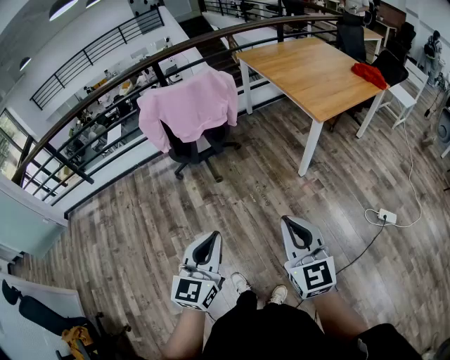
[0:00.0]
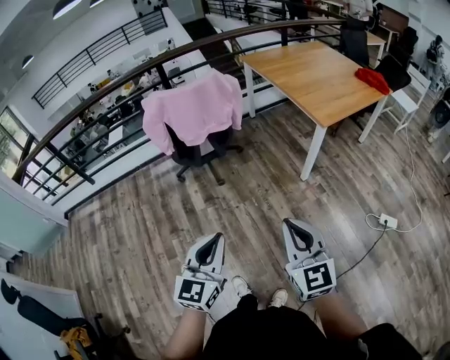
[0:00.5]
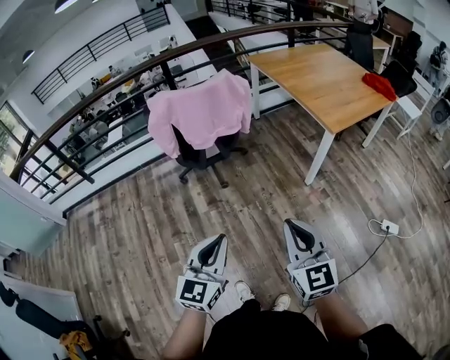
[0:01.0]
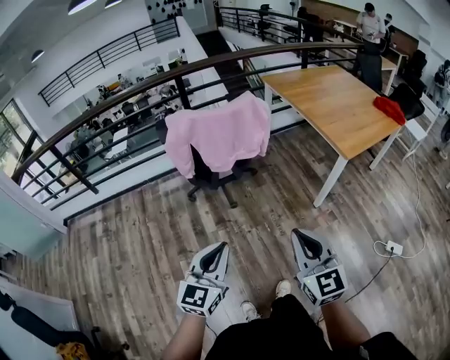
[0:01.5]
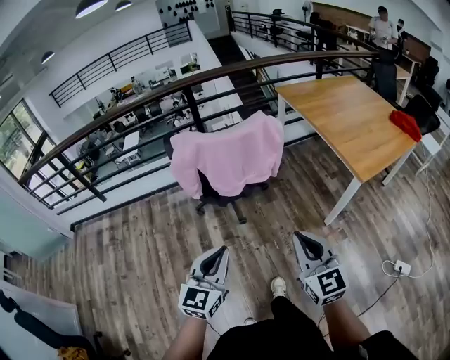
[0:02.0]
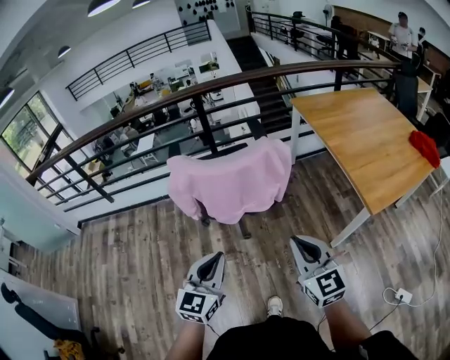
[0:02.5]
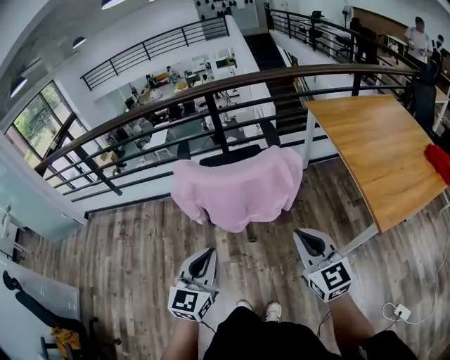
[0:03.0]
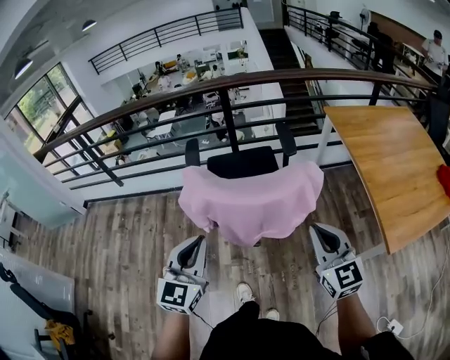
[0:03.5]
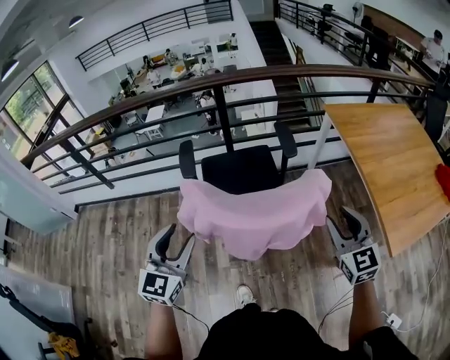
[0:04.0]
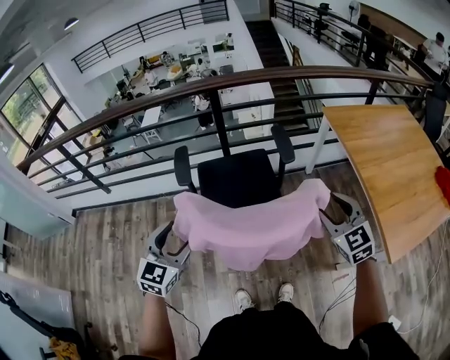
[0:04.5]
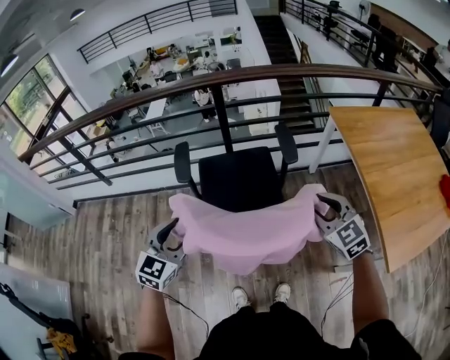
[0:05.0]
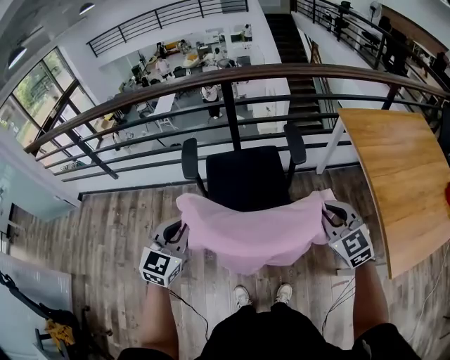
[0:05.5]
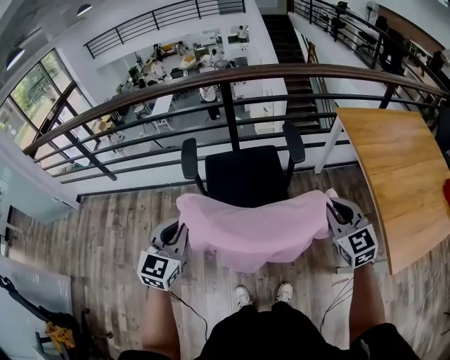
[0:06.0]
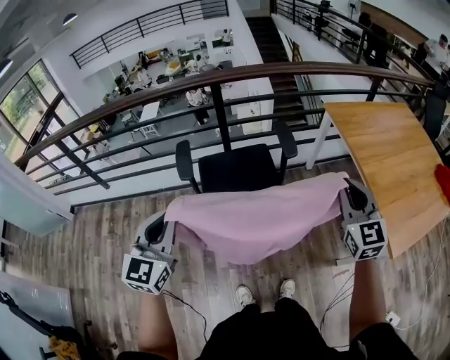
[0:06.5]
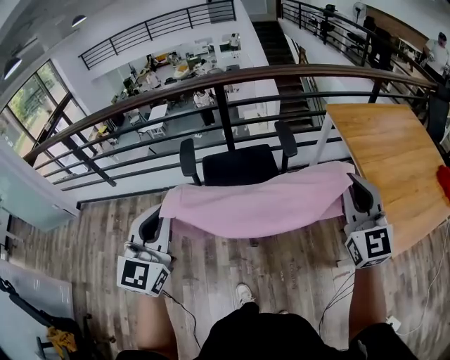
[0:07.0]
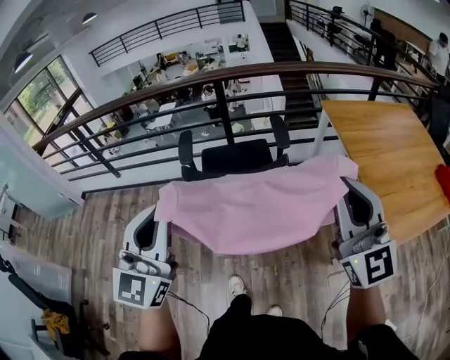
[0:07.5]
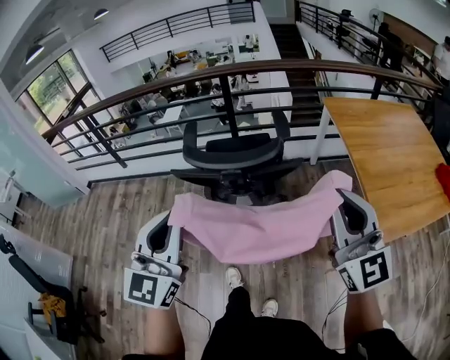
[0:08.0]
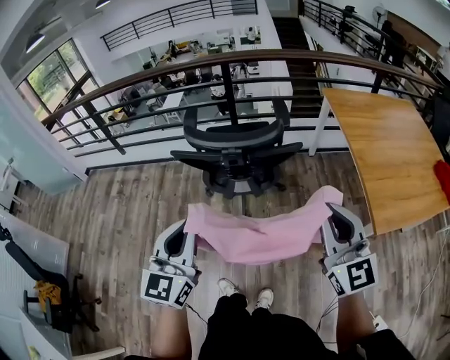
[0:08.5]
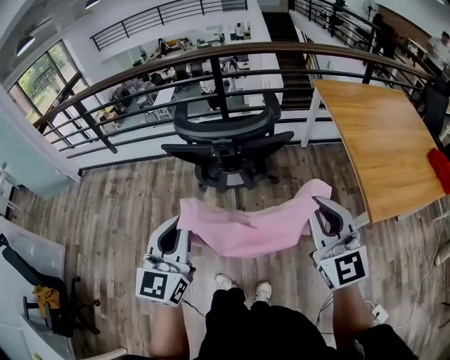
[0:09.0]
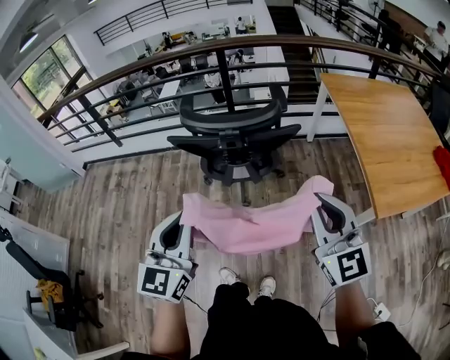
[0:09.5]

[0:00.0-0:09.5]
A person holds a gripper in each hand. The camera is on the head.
0:00.0 to 0:02.0: Both grippers move forward and to the left, about 25 cm.
0:02.0 to 0:04.0: The two grippers go roughly 40 cm forward. The right gripper opens. The left gripper opens up.
0:04.0 to 0:05.5: Both grippers travel together forward, about 10 cm. The left gripper closes; the right gripper changes its angle by approximately 20 degrees, and closes up.
0:05.5 to 0:07.5: The left gripper travels upward, backward and to the right by roughly 30 cm, and swivels about 30 degrees, while the right gripper is displaced upward and backward by roughly 30 cm, and angles its fingers upward, by about 40 degrees.
0:07.5 to 0:09.5: The two grippers go approximately 20 cm backward and downward.

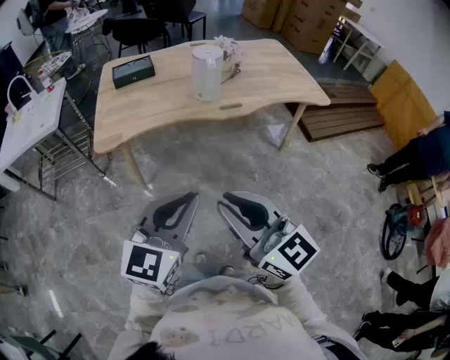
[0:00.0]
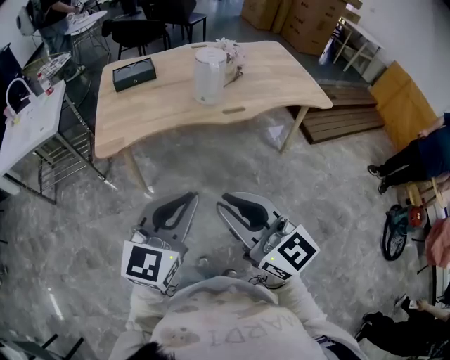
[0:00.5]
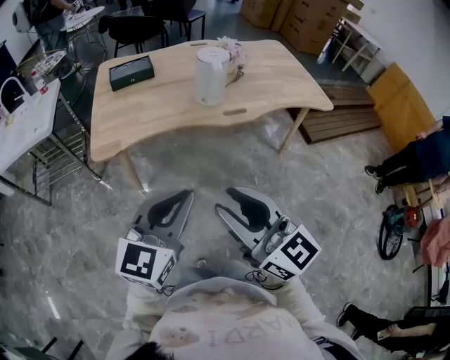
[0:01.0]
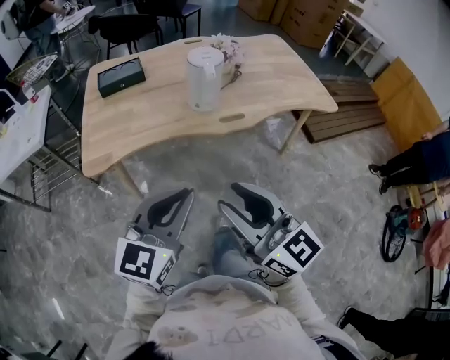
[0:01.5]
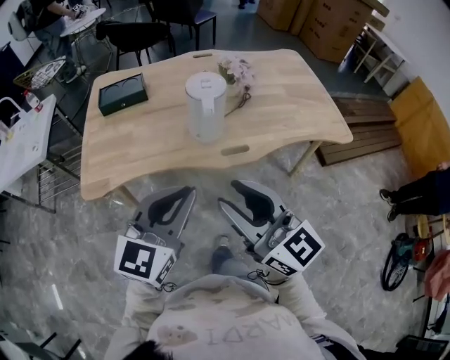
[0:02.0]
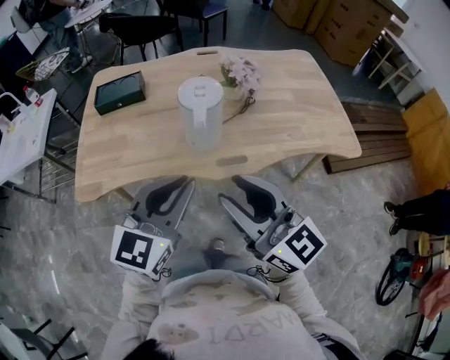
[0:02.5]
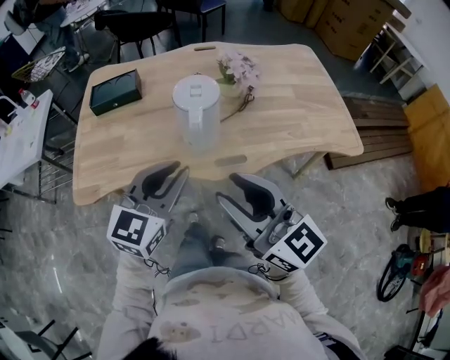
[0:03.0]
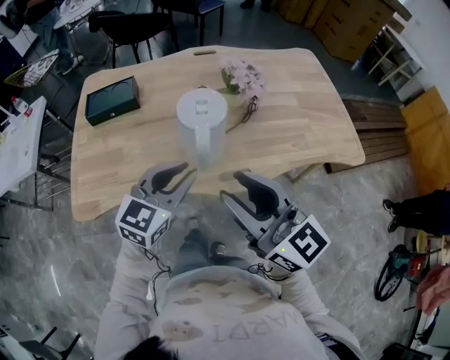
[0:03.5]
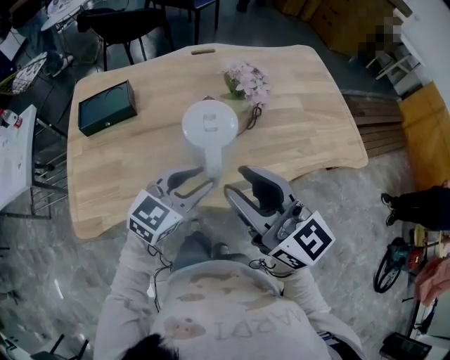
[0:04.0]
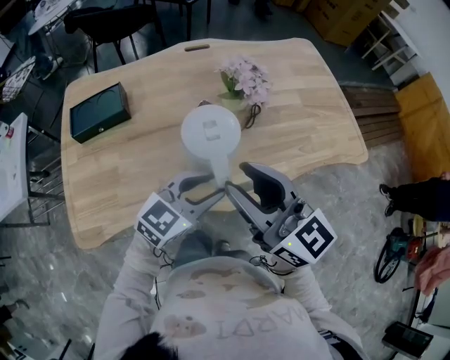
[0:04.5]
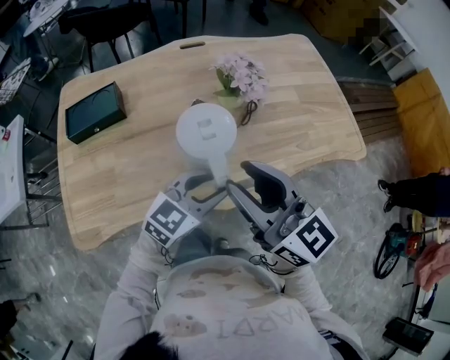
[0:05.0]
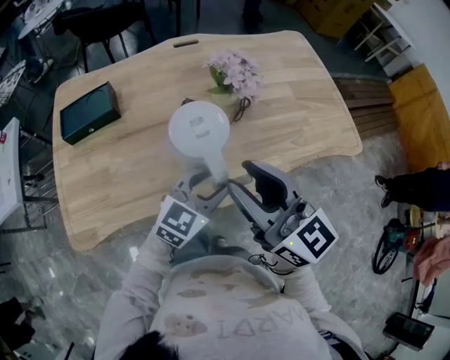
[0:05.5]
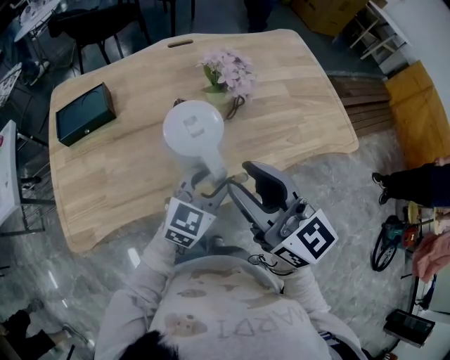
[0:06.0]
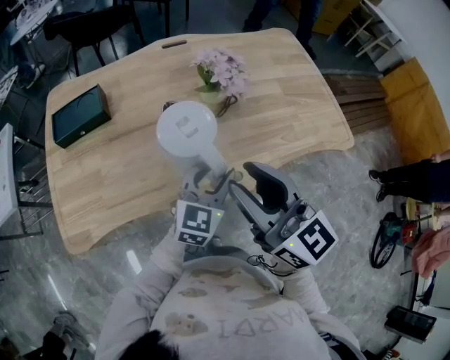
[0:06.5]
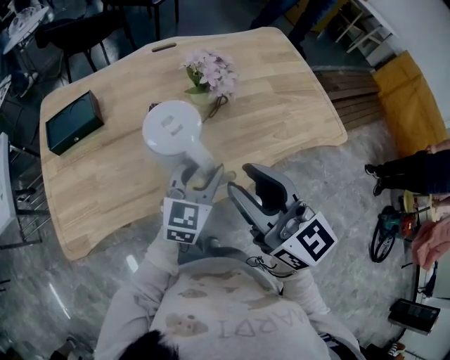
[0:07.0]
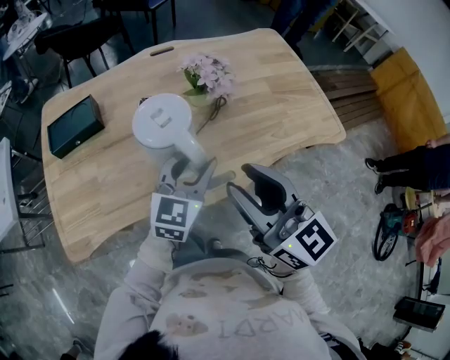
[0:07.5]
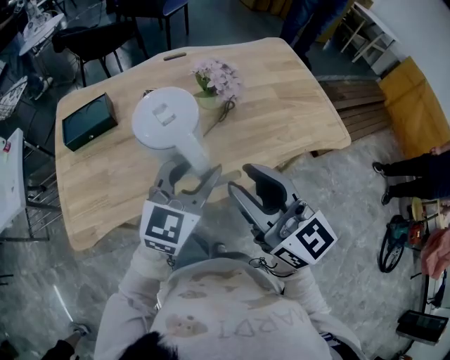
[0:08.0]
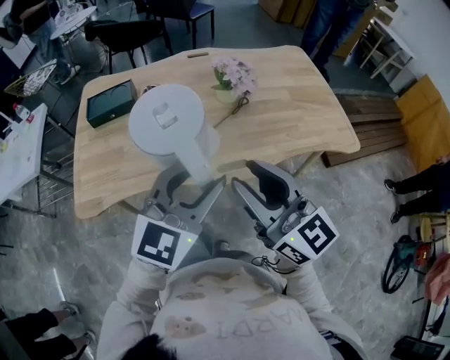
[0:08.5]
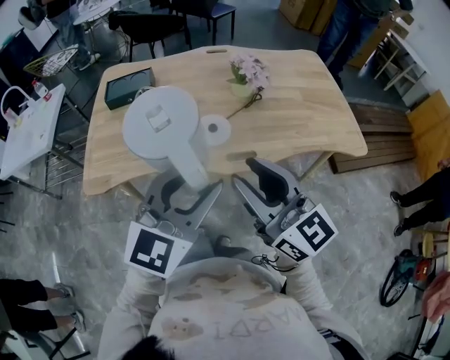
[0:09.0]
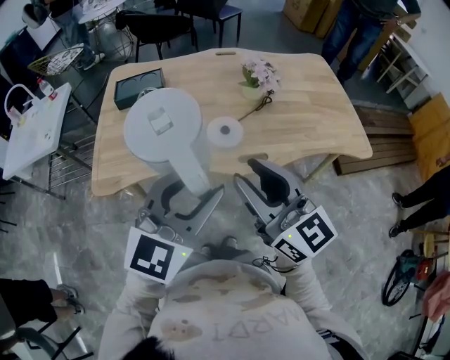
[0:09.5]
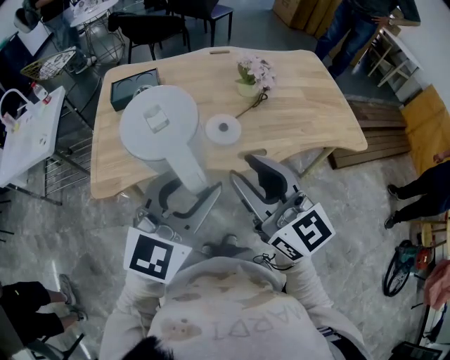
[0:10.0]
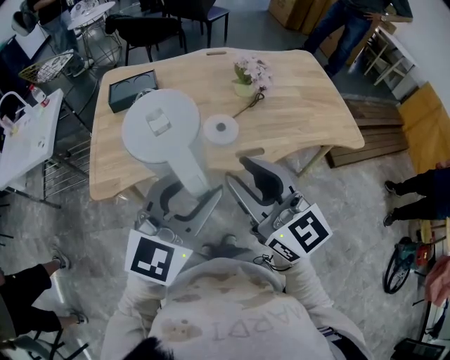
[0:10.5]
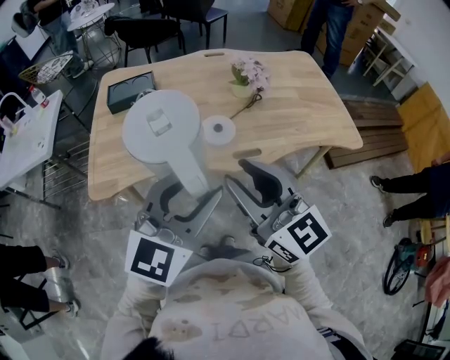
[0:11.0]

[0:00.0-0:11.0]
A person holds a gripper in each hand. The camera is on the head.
0:00.0 to 0:02.0: Both grippers move forward, approximately 30 cm.
0:02.0 to 0:03.5: The left gripper goes about 20 cm forward and downward. Meanwhile the right gripper travels forward by some 15 cm.
0:03.5 to 0:05.5: The left gripper goes some 10 cm to the right, forward and downward; the right gripper goes about 10 cm forward.
0:05.5 to 0:07.5: The right gripper ends up some 5 cm from where it was.
0:07.5 to 0:09.0: The left gripper heads backward and upward, covering some 25 cm. The right gripper goes roughly 15 cm backward.
0:09.0 to 0:11.0: Both grippers move to the left, about 5 cm.

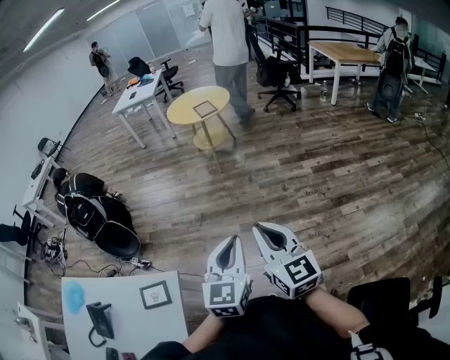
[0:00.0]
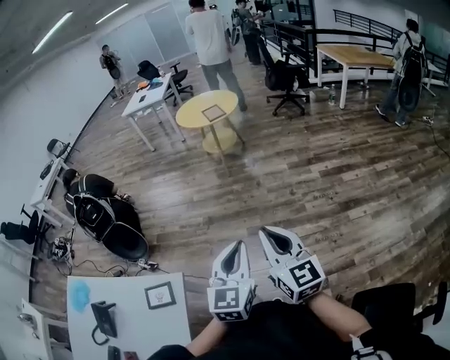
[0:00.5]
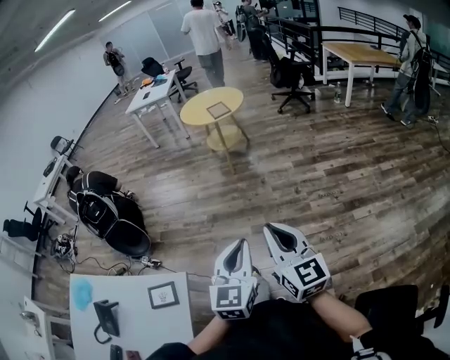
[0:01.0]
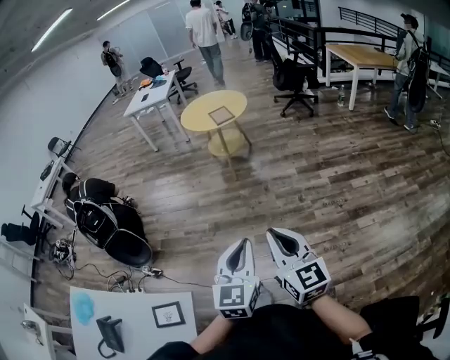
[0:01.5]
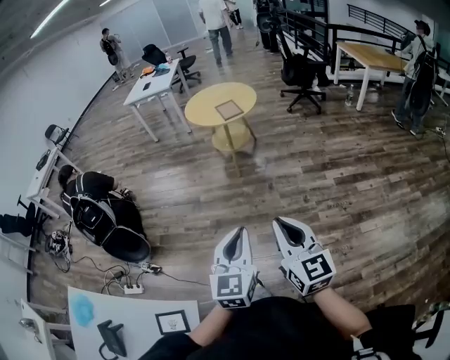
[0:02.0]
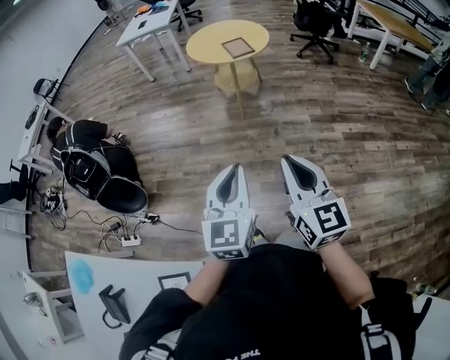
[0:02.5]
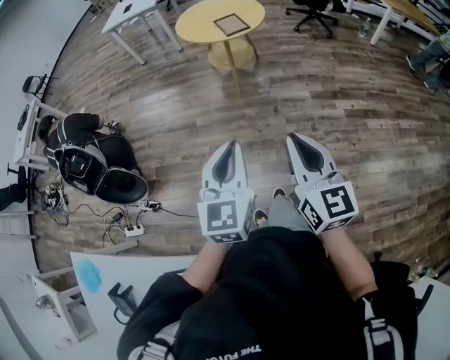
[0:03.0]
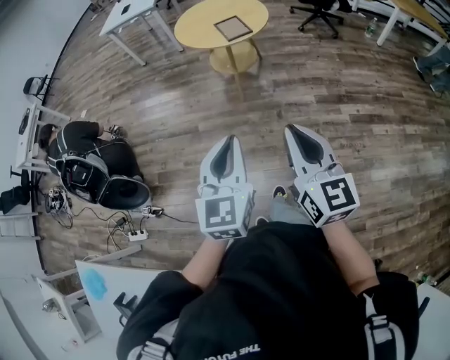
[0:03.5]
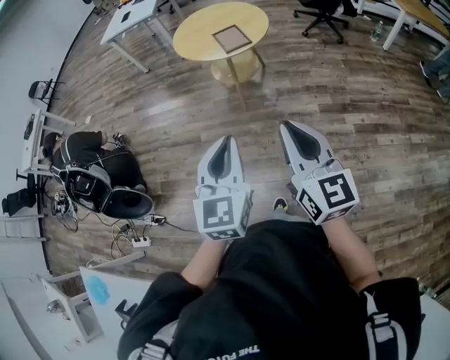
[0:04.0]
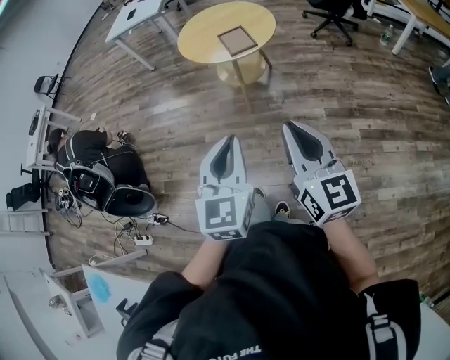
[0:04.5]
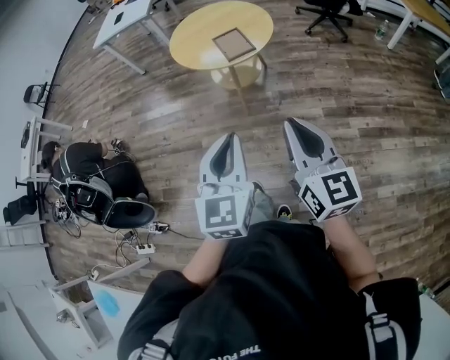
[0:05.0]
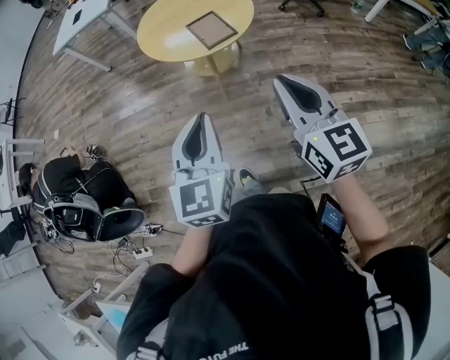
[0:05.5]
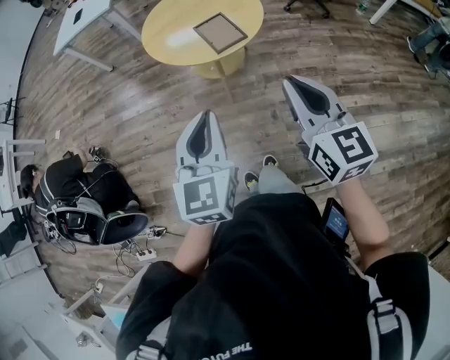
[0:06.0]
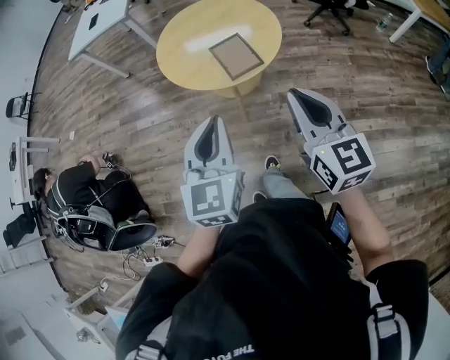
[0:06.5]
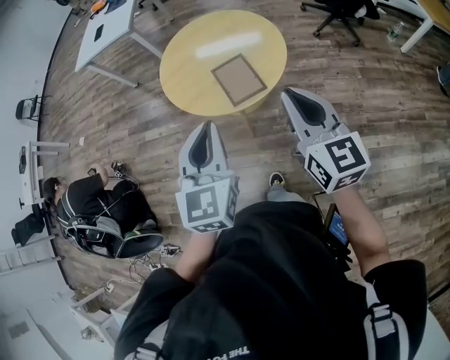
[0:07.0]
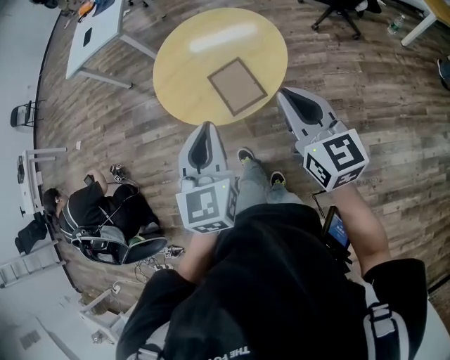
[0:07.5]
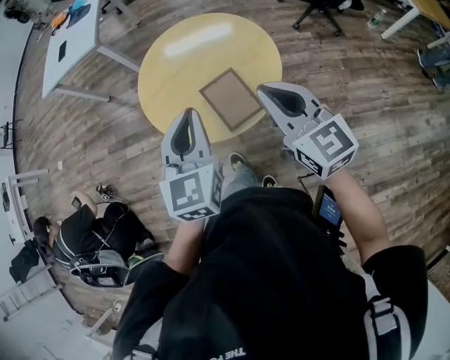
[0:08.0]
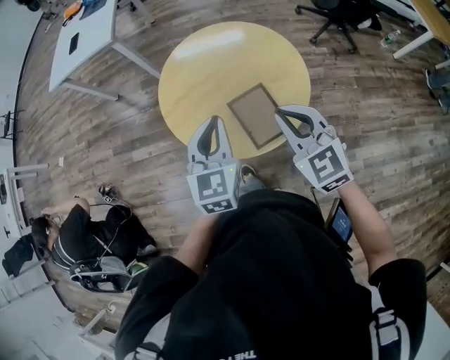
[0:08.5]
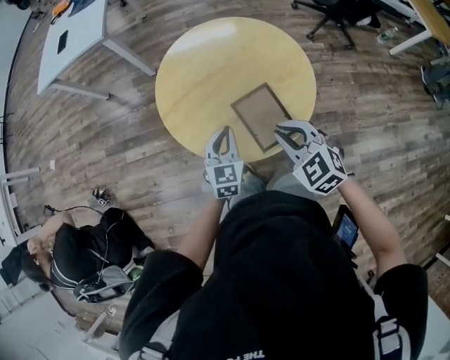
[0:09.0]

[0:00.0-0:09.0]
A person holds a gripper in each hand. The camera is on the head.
0:00.0 to 0:02.0: Both grippers travel together forward, approximately 20 cm.
0:02.0 to 0:04.5: Both grippers travel together forward, approximately 40 cm.
0:04.5 to 0:07.0: The two grippers travel together, forward, roughly 50 cm.
0:07.0 to 0:09.0: The left gripper heads forward and downward, covering some 40 cm, while the right gripper goes about 30 cm forward, downward and to the left, and tilts its fingers roughly 30 degrees downward.
